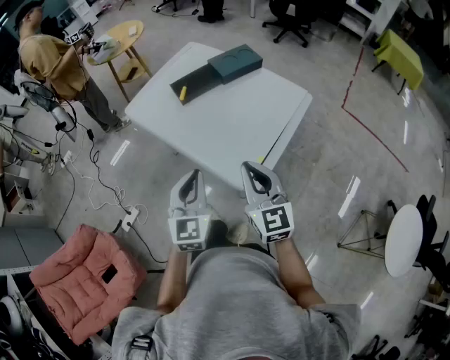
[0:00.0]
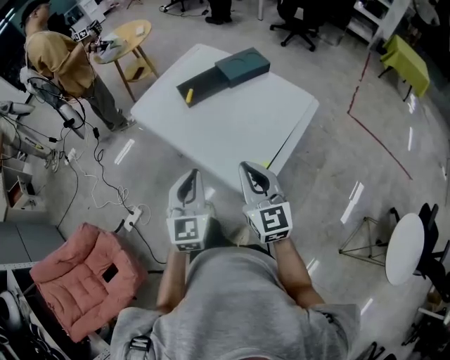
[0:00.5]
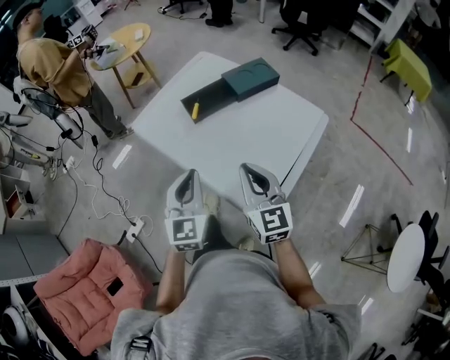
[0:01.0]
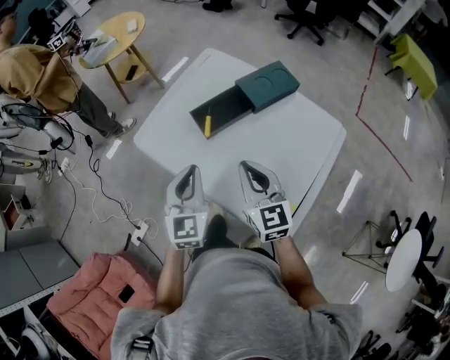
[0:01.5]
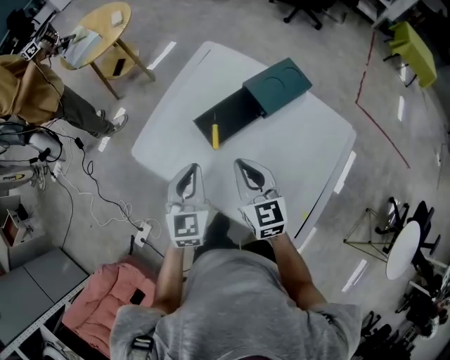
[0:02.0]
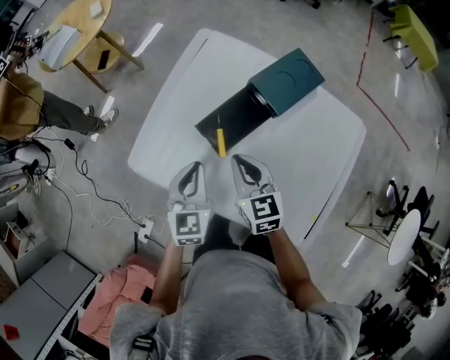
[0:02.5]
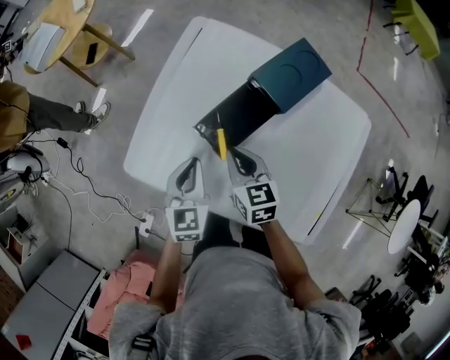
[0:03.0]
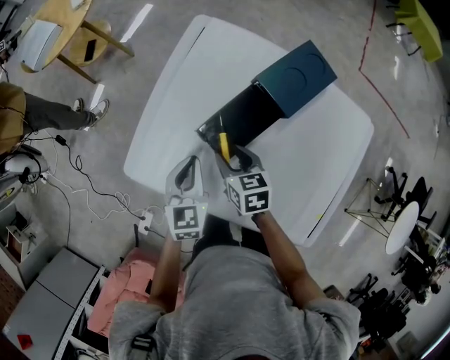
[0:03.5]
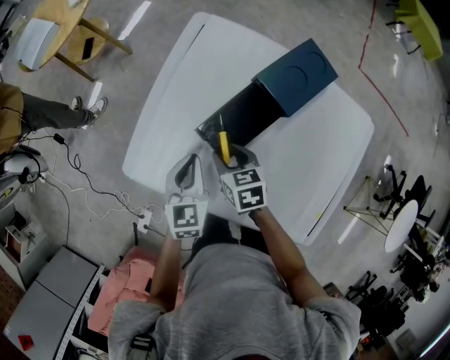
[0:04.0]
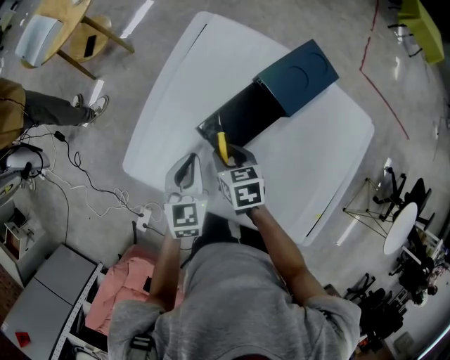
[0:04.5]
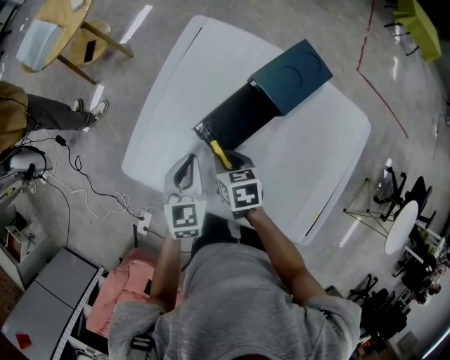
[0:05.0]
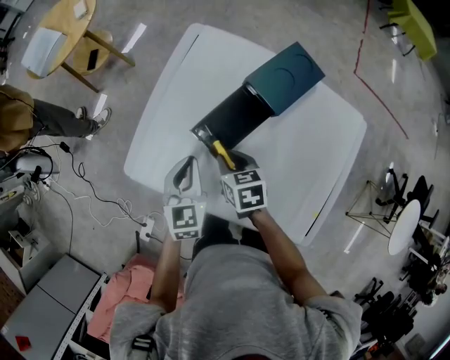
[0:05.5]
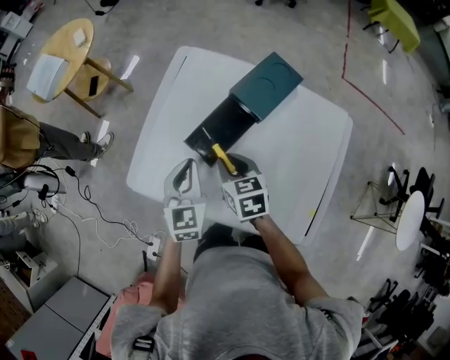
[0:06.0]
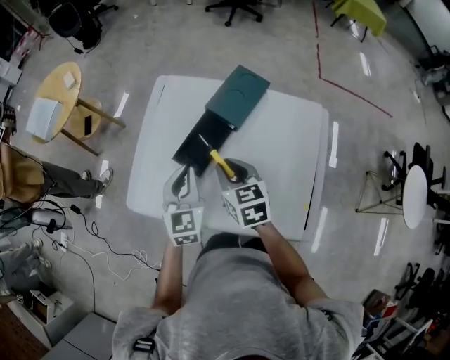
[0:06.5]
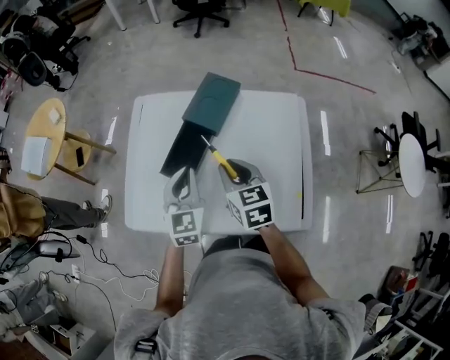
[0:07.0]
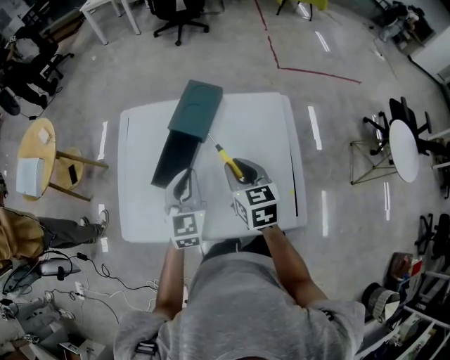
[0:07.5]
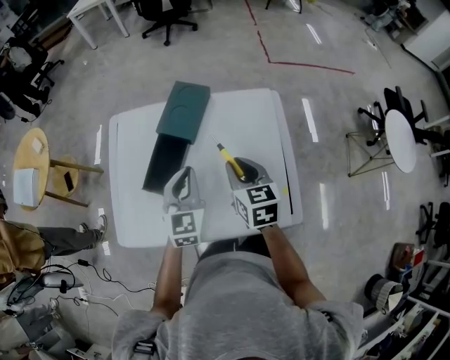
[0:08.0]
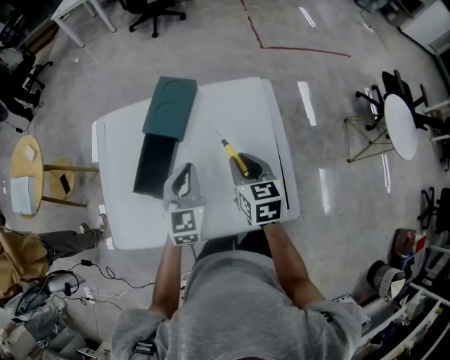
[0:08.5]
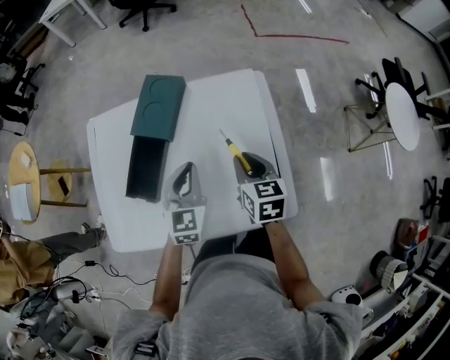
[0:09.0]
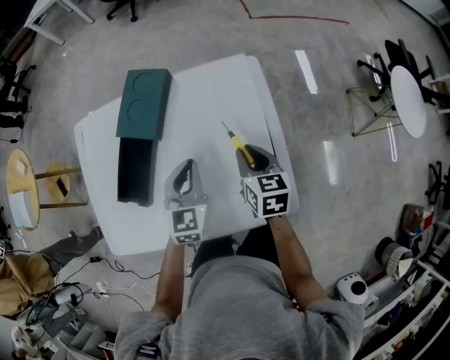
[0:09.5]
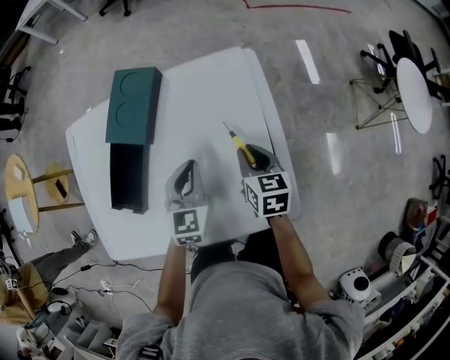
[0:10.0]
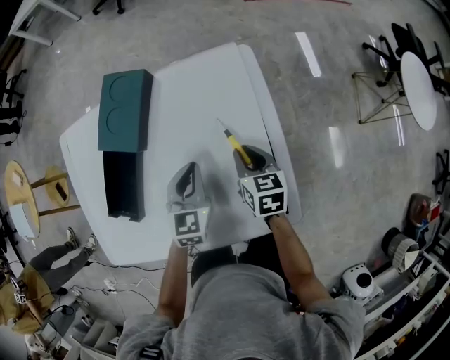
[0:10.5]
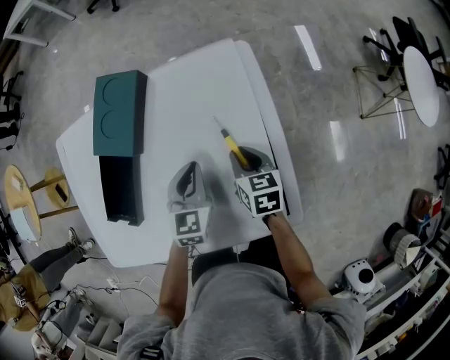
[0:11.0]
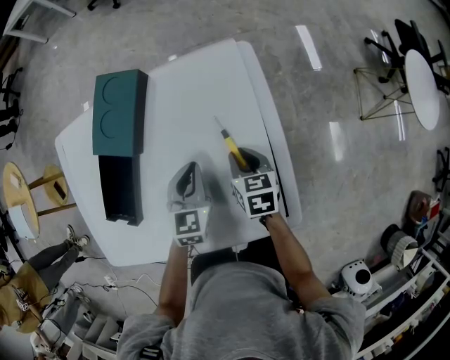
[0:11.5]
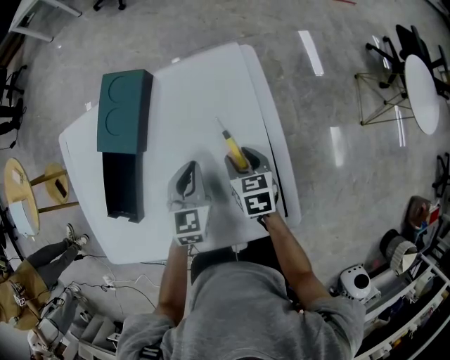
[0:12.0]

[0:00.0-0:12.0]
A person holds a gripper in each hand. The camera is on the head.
0:00.0 to 0:02.0: The two grippers go approximately 35 cm forward.
0:02.0 to 0:04.0: The grippers both shift downward and forward by approximately 20 cm. The right gripper tilts its fingers some 30 degrees downward, and opens.
0:04.0 to 0:06.0: The grippers both shift upward by about 10 cm.
0:06.0 to 0:08.0: The right gripper ends up some 25 cm from where it was, and changes its angle by some 30 degrees; the left gripper changes place by some 20 cm, and changes its angle by approximately 30 degrees.
0:08.0 to 0:10.0: The left gripper goes approximately 20 cm to the right and downward. Meanwhile the right gripper moves downward and to the right, approximately 20 cm.
0:10.0 to 0:12.0: The left gripper ends up approximately 5 cm from where it was, while the right gripper shifts about 5 cm downward, and opens up.

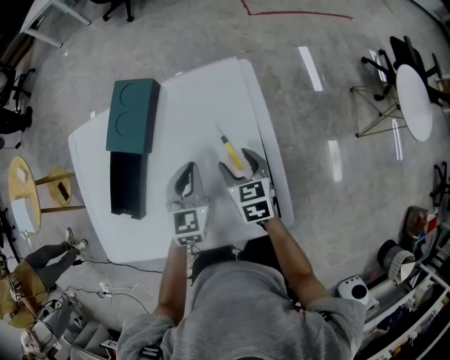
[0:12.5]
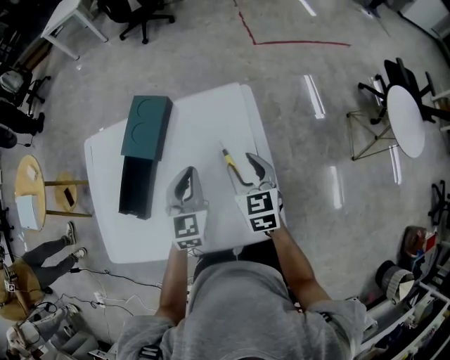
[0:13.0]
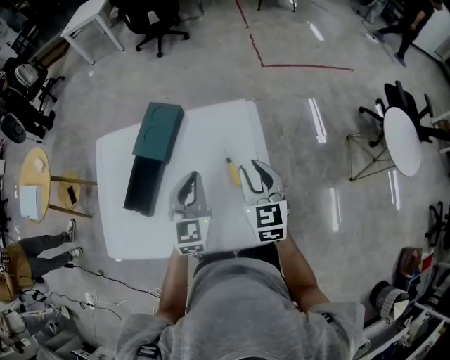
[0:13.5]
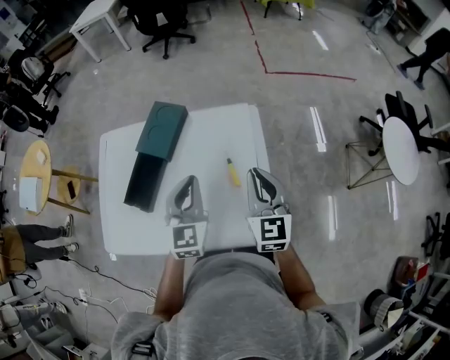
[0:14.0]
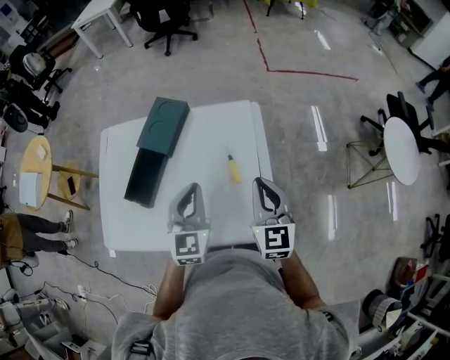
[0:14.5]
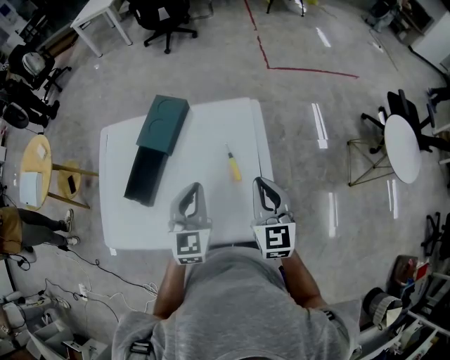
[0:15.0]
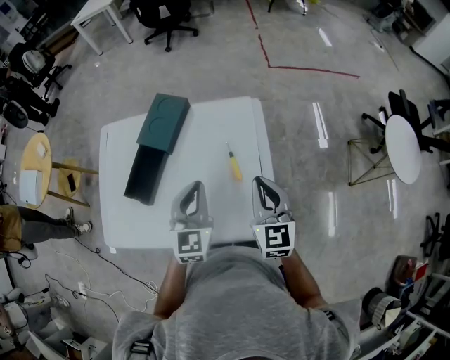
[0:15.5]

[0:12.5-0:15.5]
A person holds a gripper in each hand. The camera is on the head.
0:12.5 to 0:14.0: Both grippers move upward, approximately 20 cm. The right gripper changes its angle by approximately 30 degrees, and closes its fingers.
0:14.0 to 0:15.5: The grippers stay close to where they were, moving slightly.

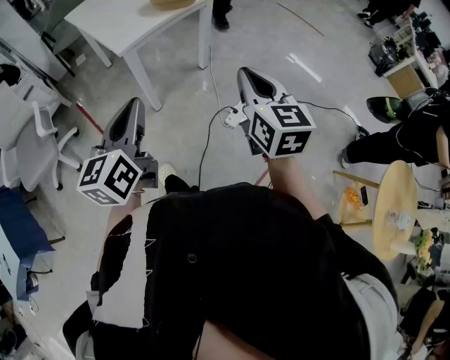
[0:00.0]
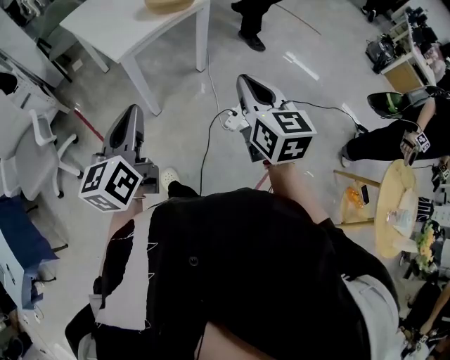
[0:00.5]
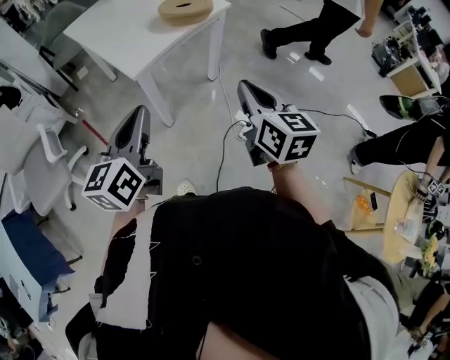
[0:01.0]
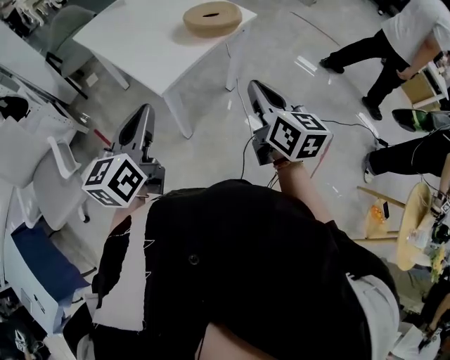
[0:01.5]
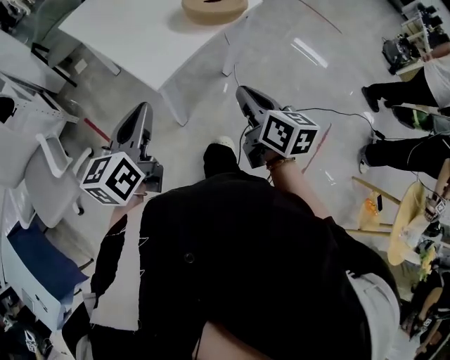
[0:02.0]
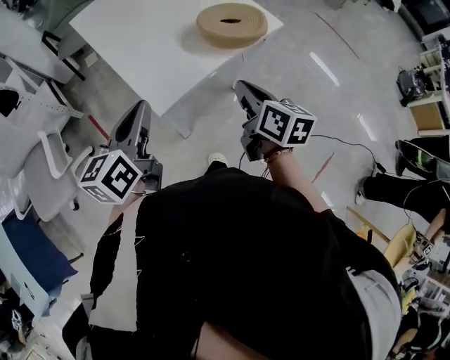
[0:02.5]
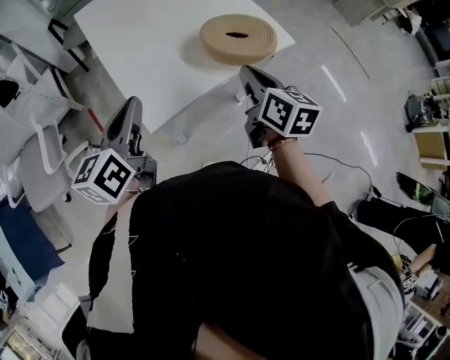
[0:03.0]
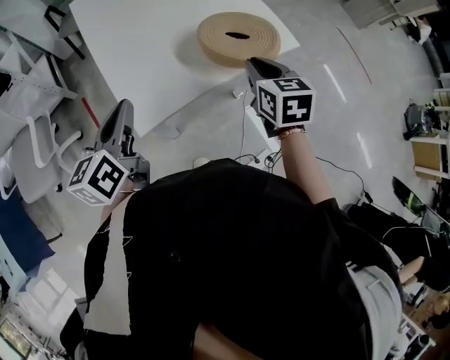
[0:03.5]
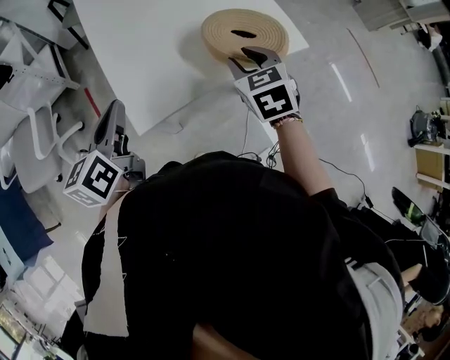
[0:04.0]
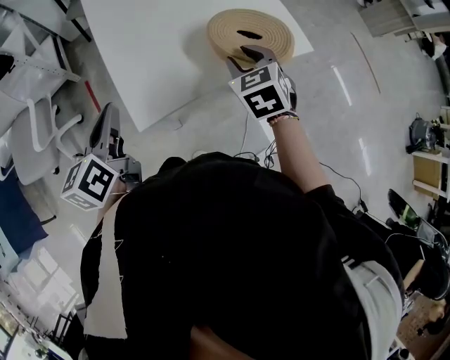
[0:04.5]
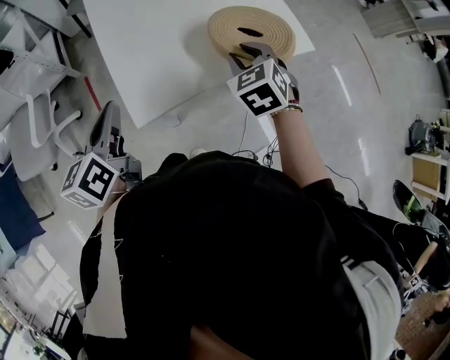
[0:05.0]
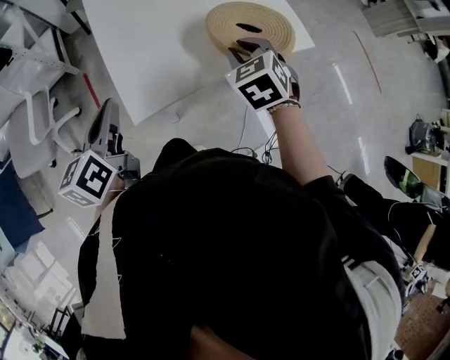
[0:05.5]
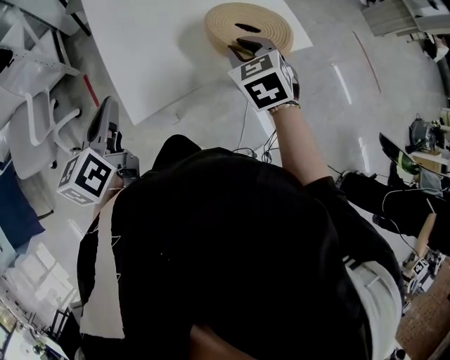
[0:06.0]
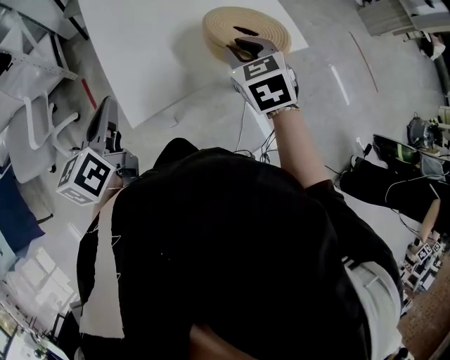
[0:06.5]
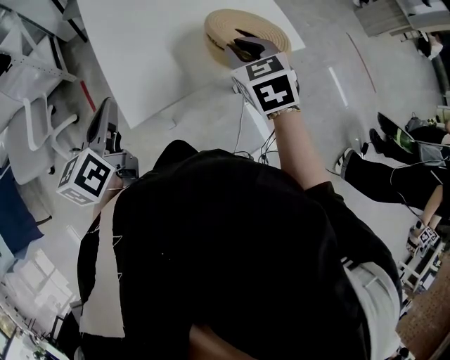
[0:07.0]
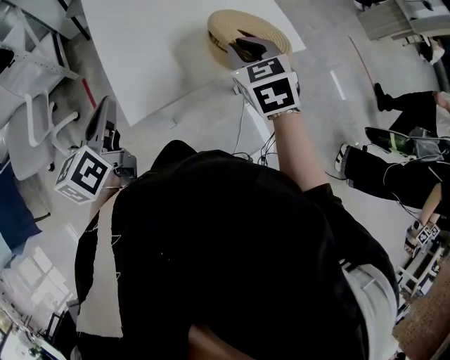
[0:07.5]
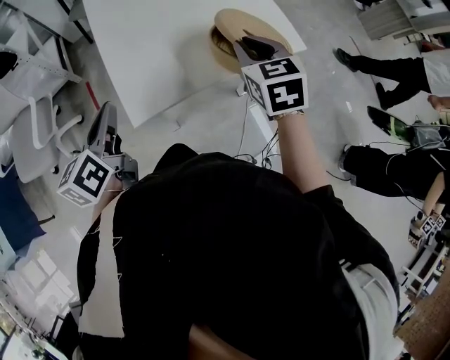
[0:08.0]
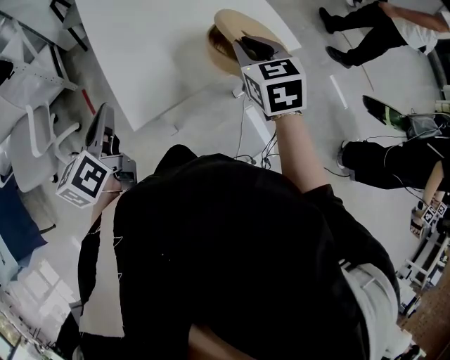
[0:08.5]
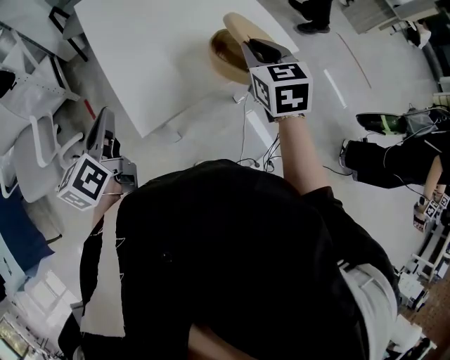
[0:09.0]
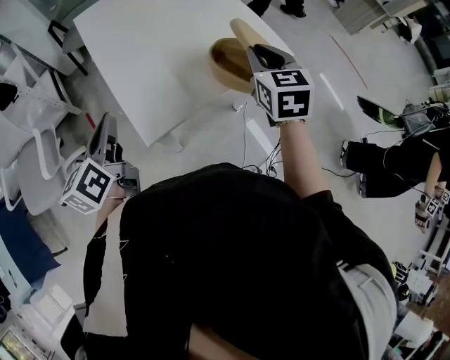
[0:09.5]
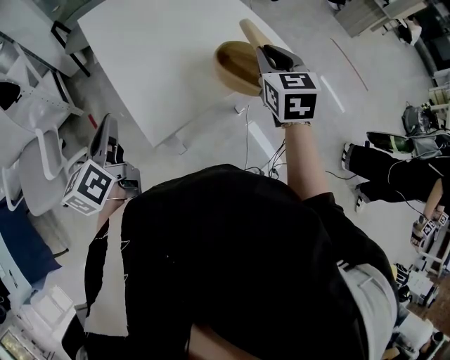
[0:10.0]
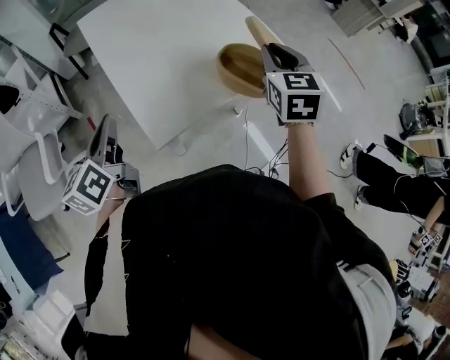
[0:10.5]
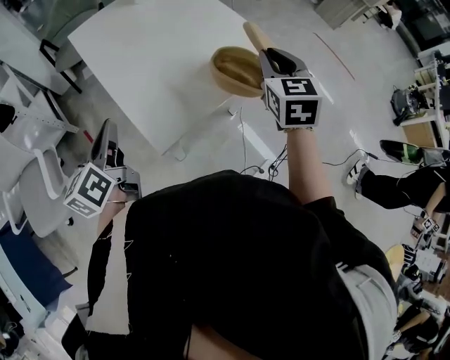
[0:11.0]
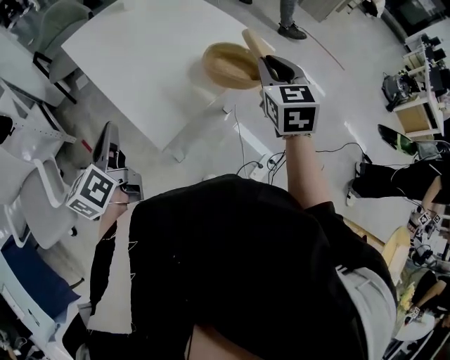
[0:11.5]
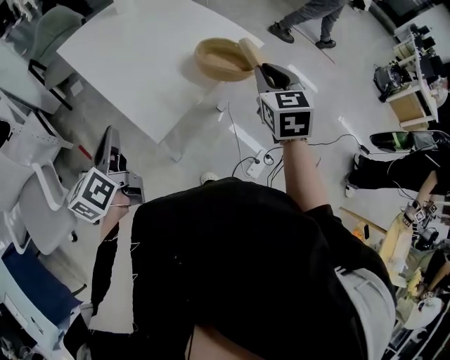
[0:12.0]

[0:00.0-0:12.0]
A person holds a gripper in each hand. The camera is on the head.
0:00.0 to 0:02.0: The right gripper shifts approximately 30 cm forward, to the left and downward, and swivels roughly 30 degrees, while the left gripper heads forward and to the left, covering roughly 30 cm.
0:02.0 to 0:04.0: The left gripper heads forward, covering about 15 cm, and turns by approximately 30 degrees, while the right gripper shifts roughly 30 cm forward, twists roughly 50 degrees counterclockwise, seen from behind, and opens its fingers.
0:04.0 to 0:06.0: The grippers make only small movements.
0:06.0 to 0:08.0: The right gripper heads upward, covering some 5 cm.
0:08.0 to 0:10.0: The right gripper travels upward by roughly 5 cm. Meanwhile the left gripper shifts by some 5 cm.
0:10.0 to 0:12.0: The right gripper travels backward by about 15 cm.
